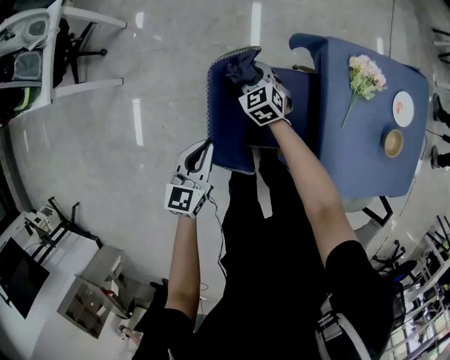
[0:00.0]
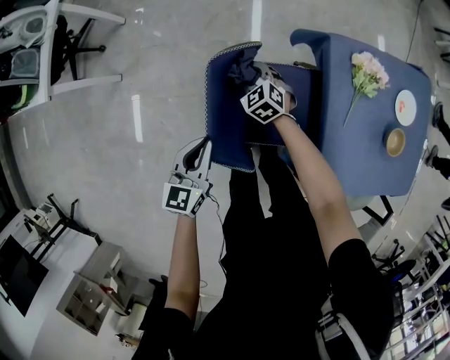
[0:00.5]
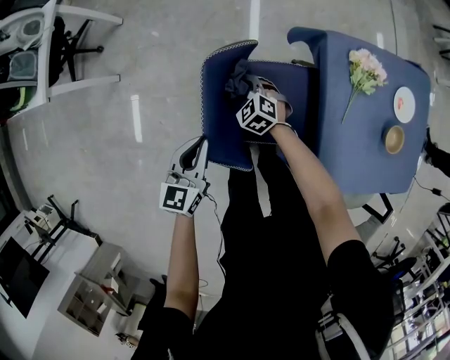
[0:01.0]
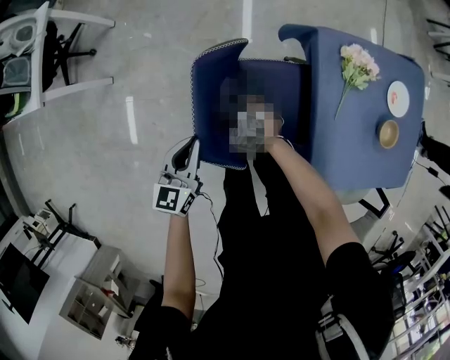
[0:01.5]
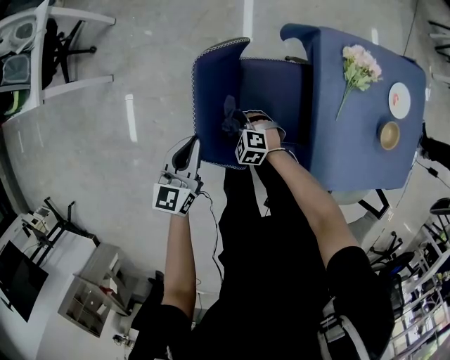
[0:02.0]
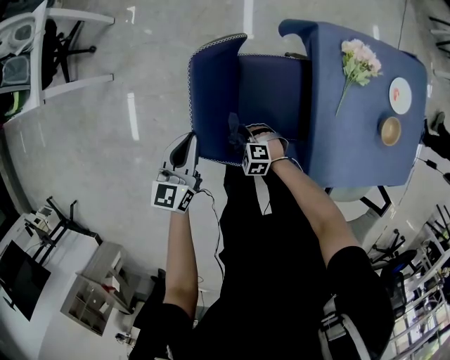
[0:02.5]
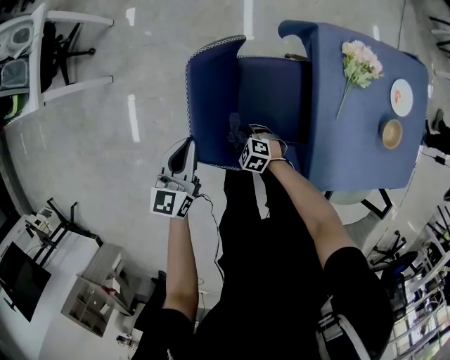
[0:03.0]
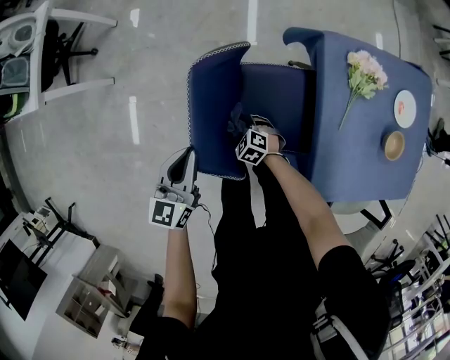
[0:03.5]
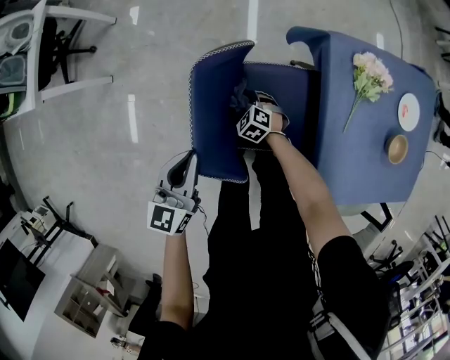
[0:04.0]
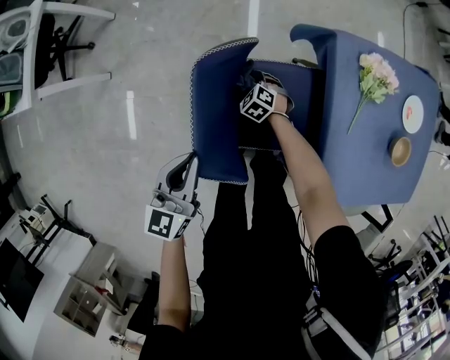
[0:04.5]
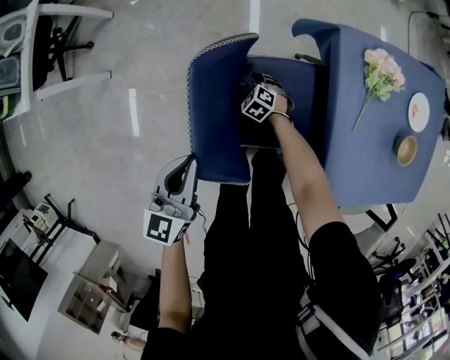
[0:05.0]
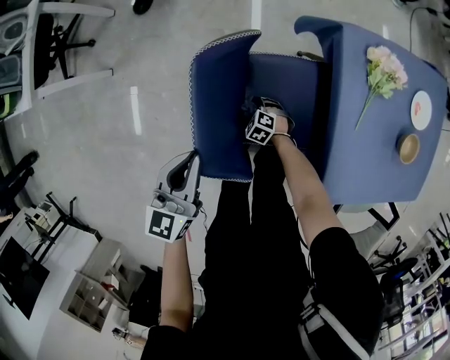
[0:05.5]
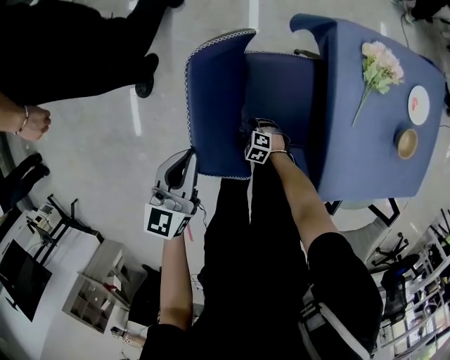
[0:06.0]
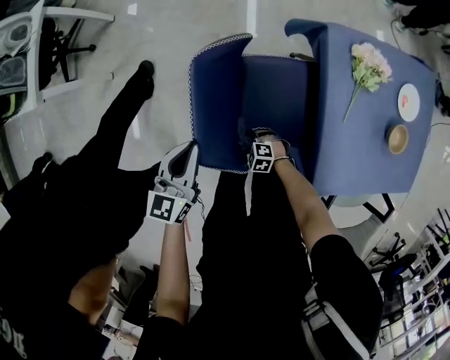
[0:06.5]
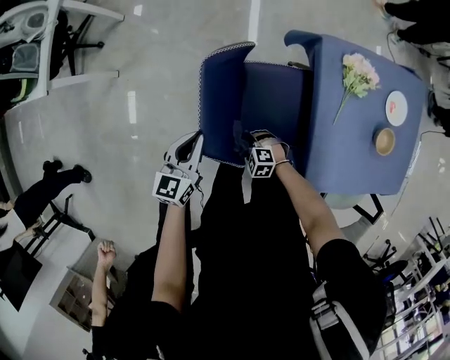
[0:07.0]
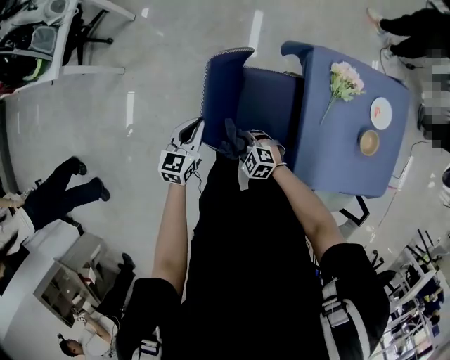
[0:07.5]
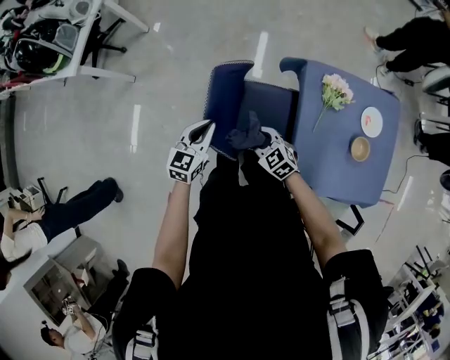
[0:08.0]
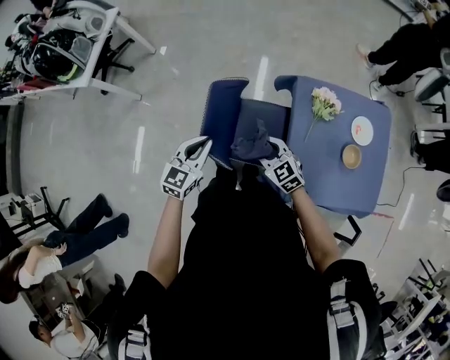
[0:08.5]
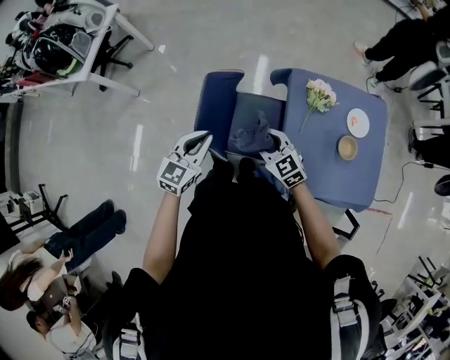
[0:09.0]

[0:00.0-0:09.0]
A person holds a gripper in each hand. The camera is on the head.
0:00.0 to 0:02.0: The right gripper is displaced backward and downward by roughly 20 cm, and swivels roughly 40 degrees.
0:02.0 to 0:04.5: The right gripper shifts roughly 20 cm forward, downward and to the right.
0:04.5 to 0:07.0: The right gripper goes about 25 cm backward, and changes its angle by roughly 30 degrees.
0:07.0 to 0:09.0: The left gripper moves upward and backward, about 25 cm, while the right gripper shifts approximately 35 cm upward, and turns by about 40 degrees.

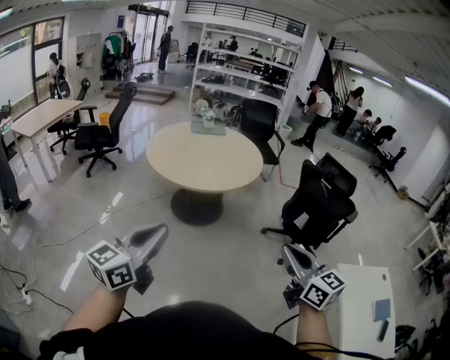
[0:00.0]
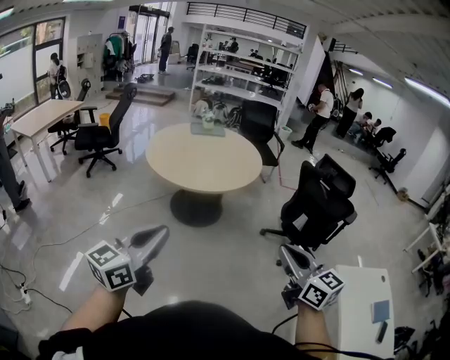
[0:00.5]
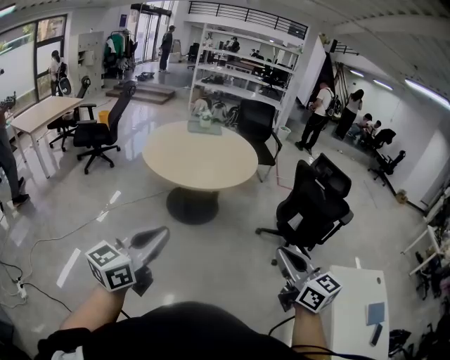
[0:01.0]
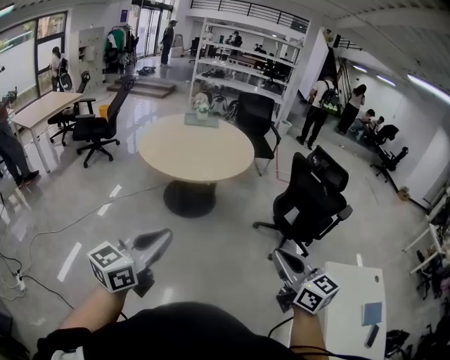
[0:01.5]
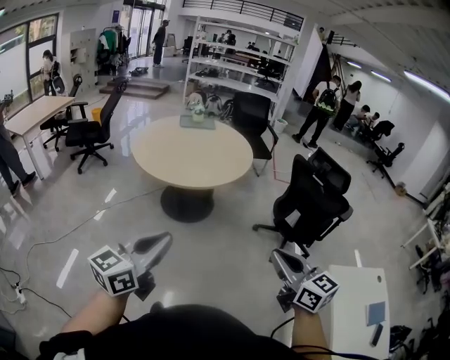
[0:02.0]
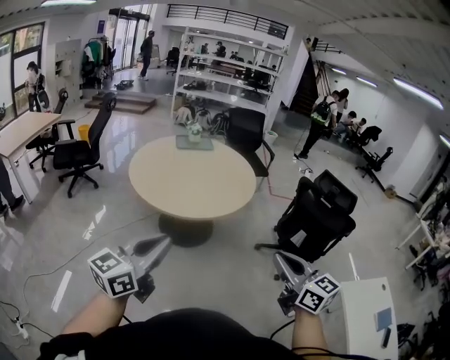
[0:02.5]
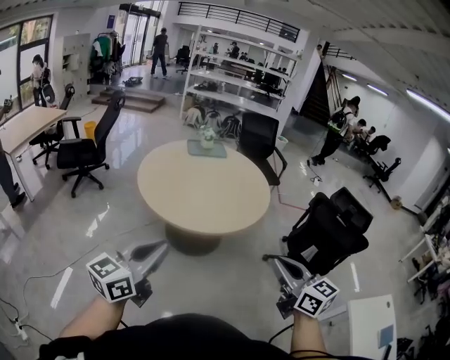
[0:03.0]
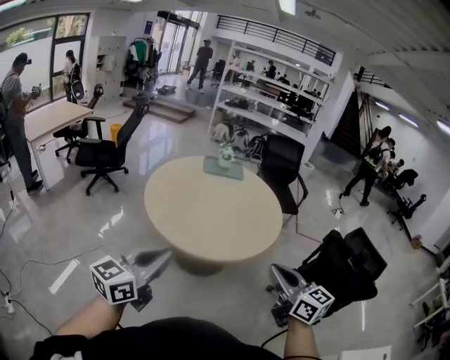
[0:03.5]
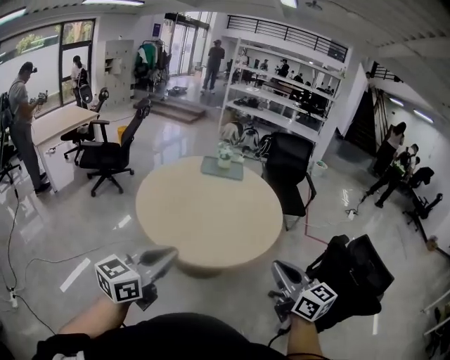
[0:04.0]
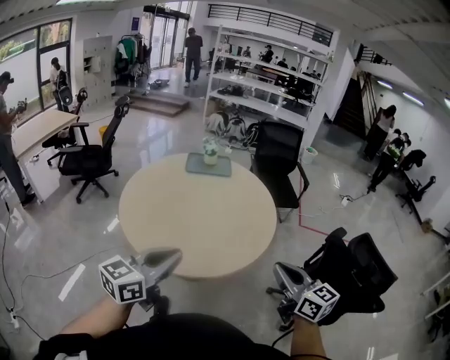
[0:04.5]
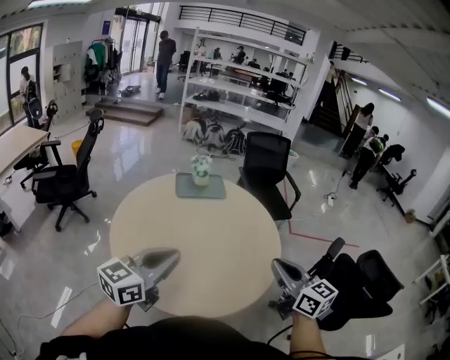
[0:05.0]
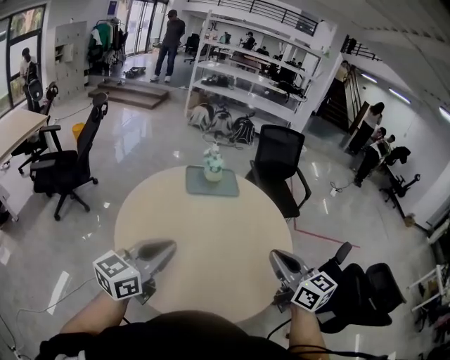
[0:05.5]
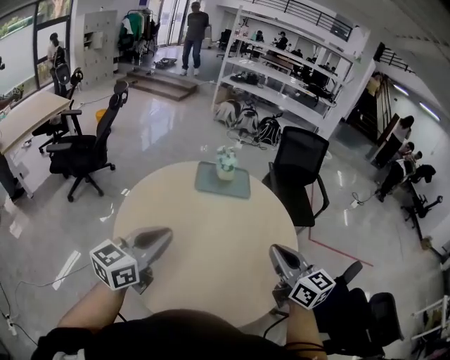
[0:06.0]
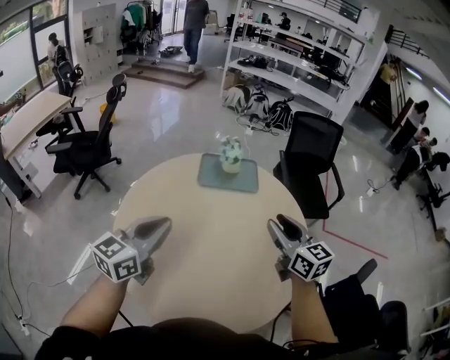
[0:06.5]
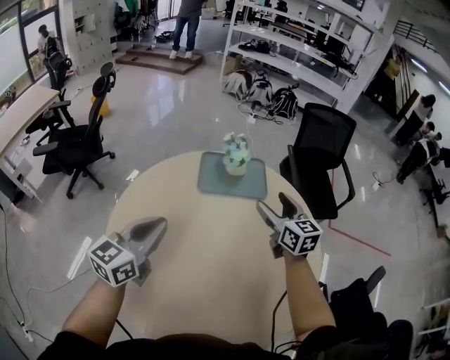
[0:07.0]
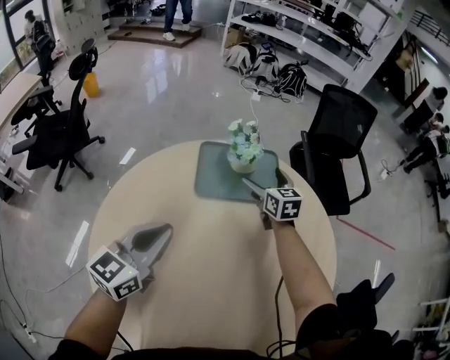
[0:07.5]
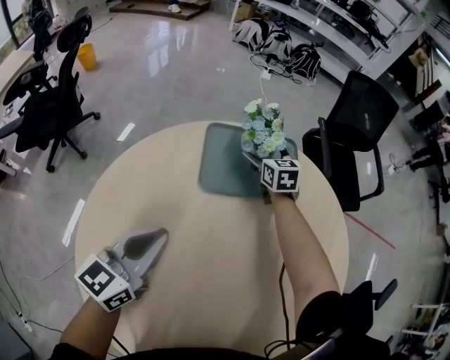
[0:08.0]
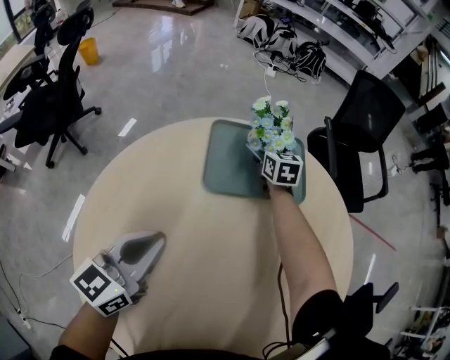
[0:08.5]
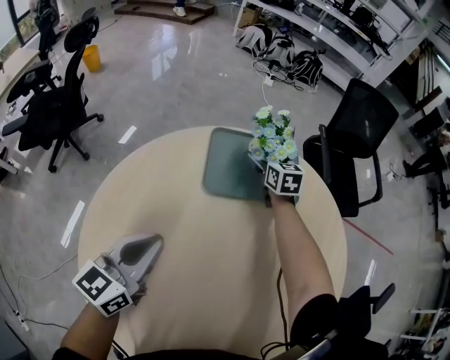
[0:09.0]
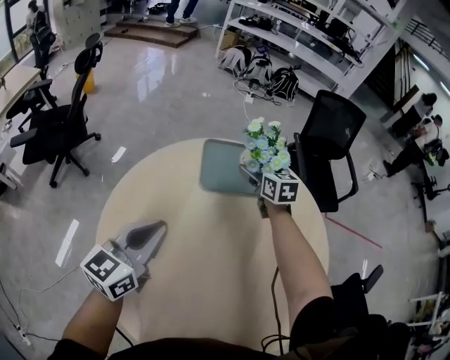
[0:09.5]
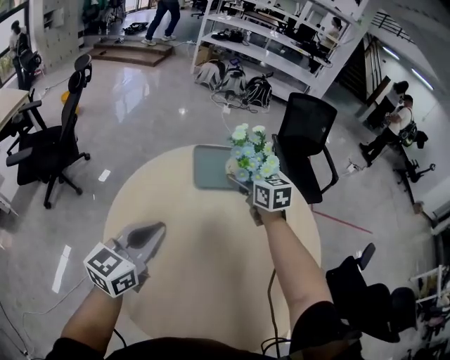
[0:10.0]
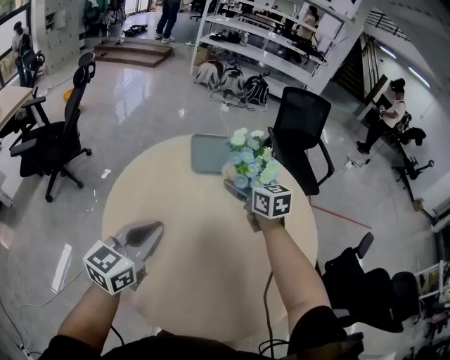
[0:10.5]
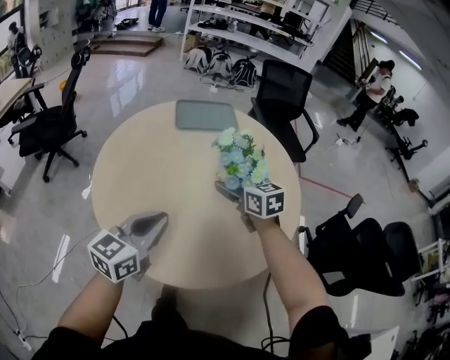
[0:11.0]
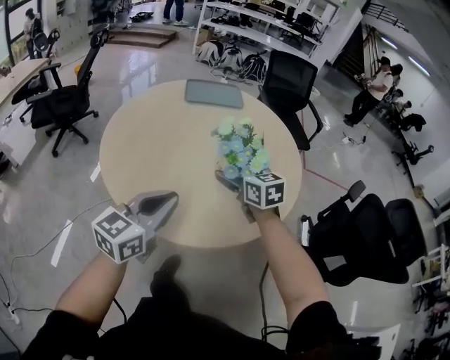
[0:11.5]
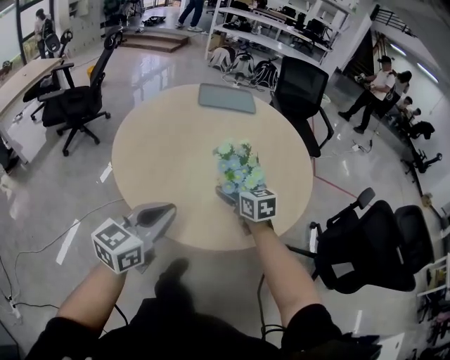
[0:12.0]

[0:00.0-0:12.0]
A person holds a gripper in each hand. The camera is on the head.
0:00.0 to 0:02.0: The right gripper is displaced to the right by approximately 5 cm. The left gripper travels to the right by some 10 cm.
0:02.0 to 0:04.0: Both grippers travel together forward, some 40 cm.
0:04.0 to 0:06.0: The two grippers travel together, forward, approximately 40 cm.
0:06.0 to 0:08.0: The left gripper goes about 40 cm forward and downward, while the right gripper shifts about 70 cm forward and downward, swivels some 30 degrees, and opens.
0:08.0 to 0:10.0: The right gripper travels backward and upward by approximately 30 cm. The left gripper heads backward and upward, covering some 20 cm.
0:10.0 to 0:12.0: Both grippers are carried backward, roughly 40 cm.

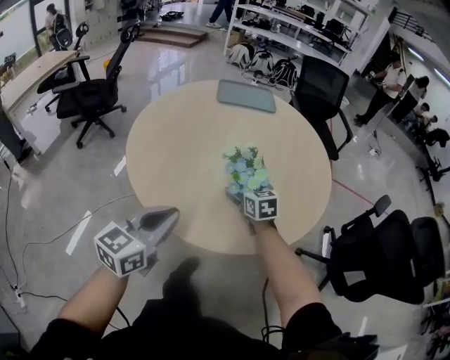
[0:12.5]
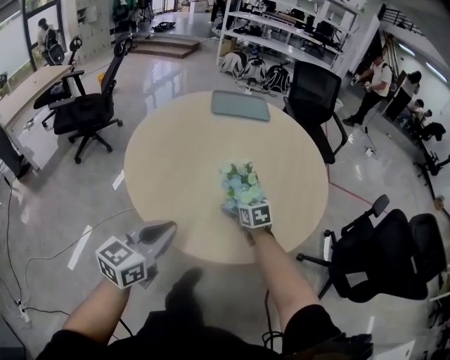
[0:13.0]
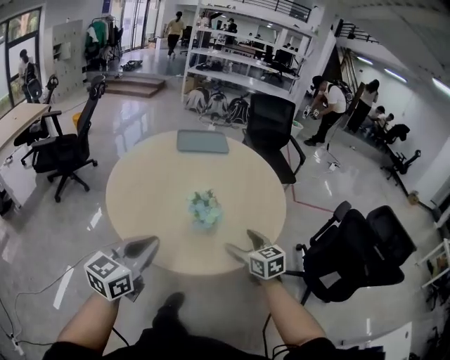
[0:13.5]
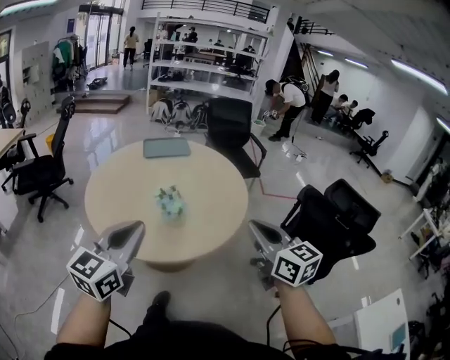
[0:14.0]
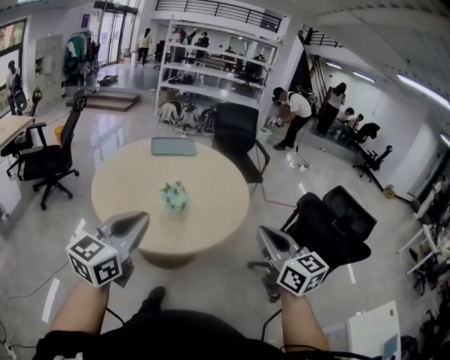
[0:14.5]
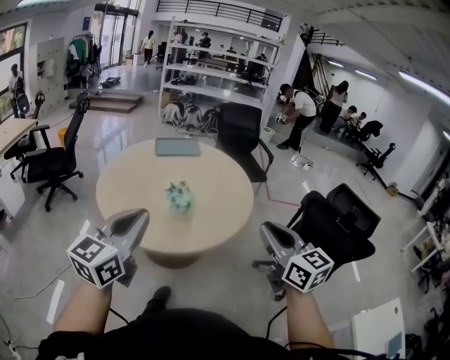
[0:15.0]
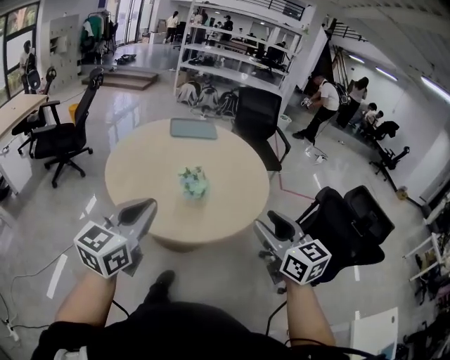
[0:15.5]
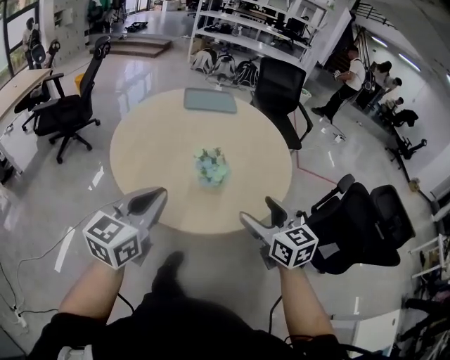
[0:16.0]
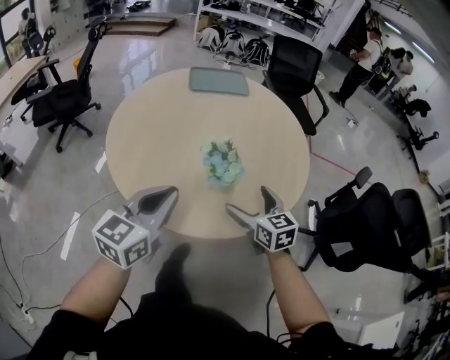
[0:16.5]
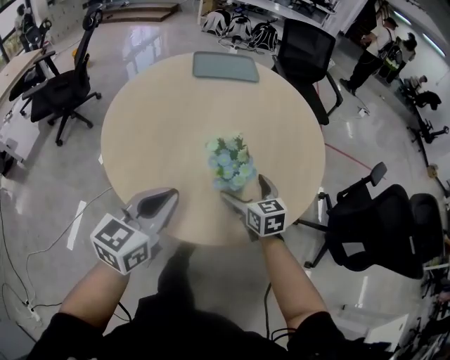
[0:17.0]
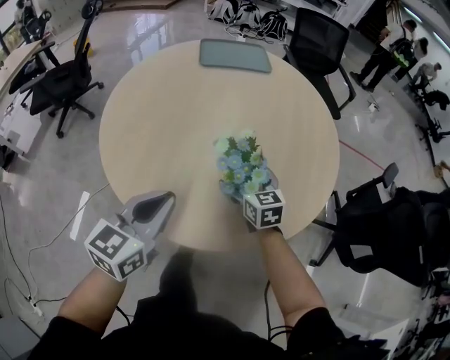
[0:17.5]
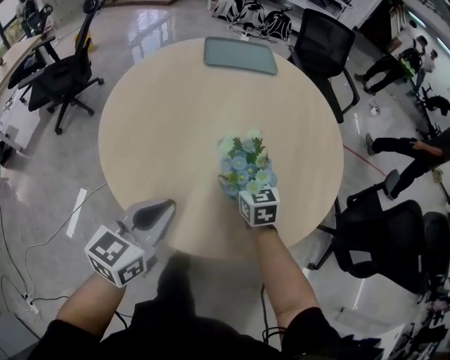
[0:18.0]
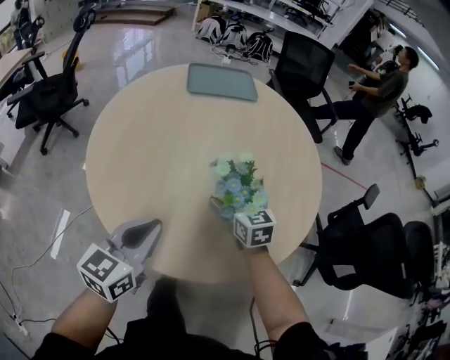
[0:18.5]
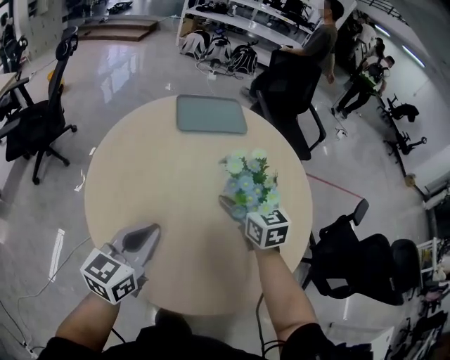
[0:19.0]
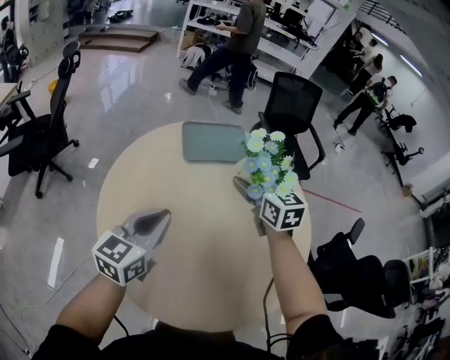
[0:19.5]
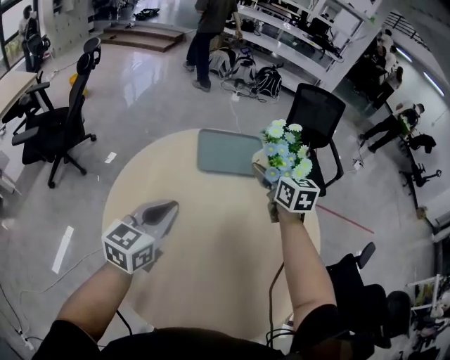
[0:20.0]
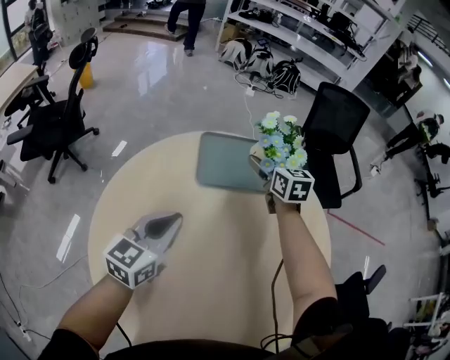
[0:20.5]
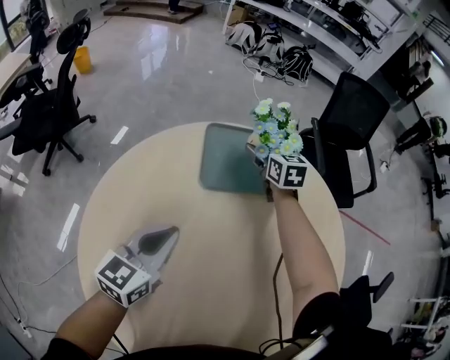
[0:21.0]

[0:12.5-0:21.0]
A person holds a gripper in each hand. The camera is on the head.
0:12.5 to 0:14.5: The right gripper travels upward, backward and to the right by some 60 cm, turns by some 30 degrees, and closes its fingers. The left gripper moves upward and backward, approximately 30 cm.
0:14.5 to 0:16.5: The left gripper moves forward and downward, some 25 cm; the right gripper goes about 40 cm downward, forward and to the left, changes its angle by approximately 20 degrees, and opens its fingers.
0:16.5 to 0:19.0: The left gripper heads forward and to the left, covering approximately 20 cm, while the right gripper goes roughly 25 cm forward.
0:19.0 to 0:21.0: The left gripper moves forward, some 30 cm. The right gripper goes about 50 cm forward.
